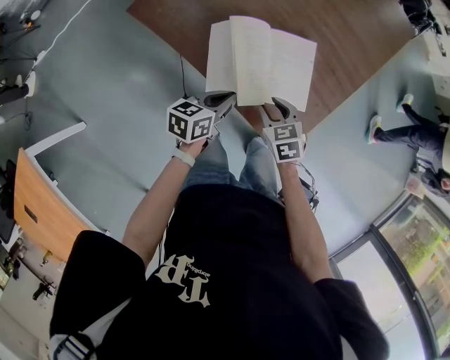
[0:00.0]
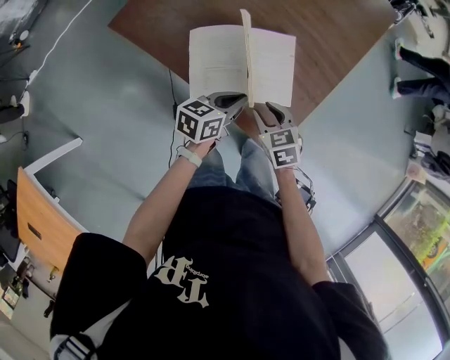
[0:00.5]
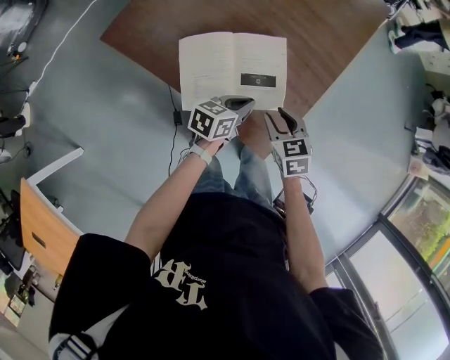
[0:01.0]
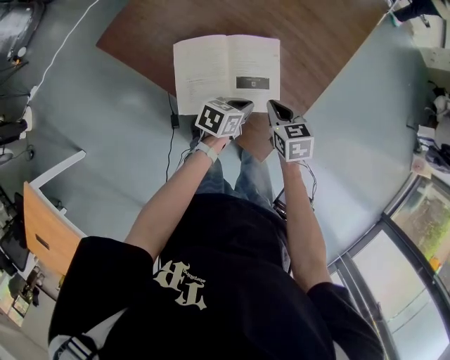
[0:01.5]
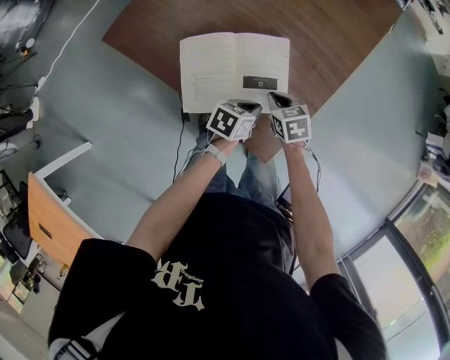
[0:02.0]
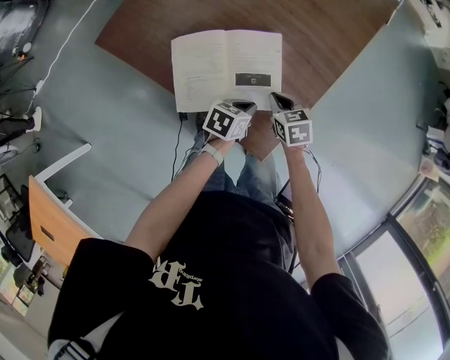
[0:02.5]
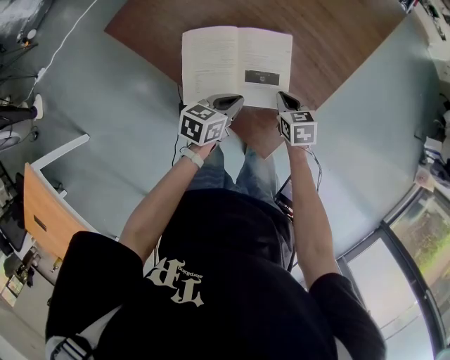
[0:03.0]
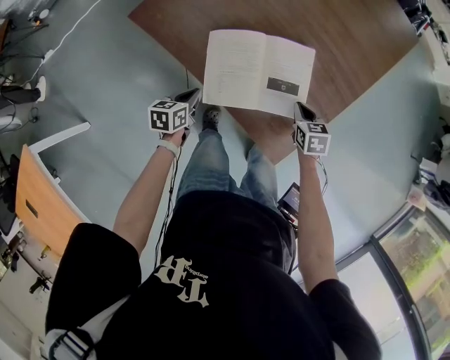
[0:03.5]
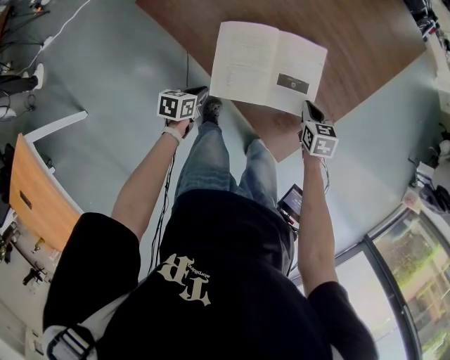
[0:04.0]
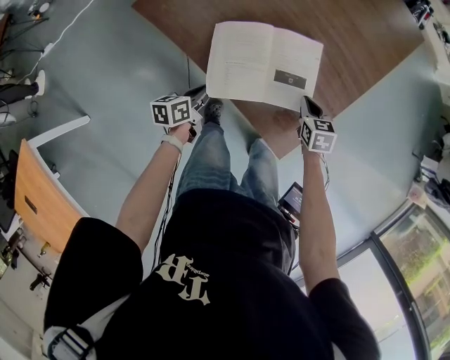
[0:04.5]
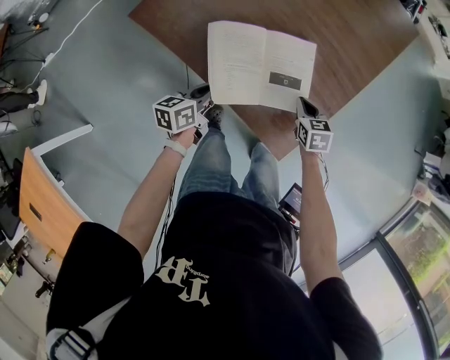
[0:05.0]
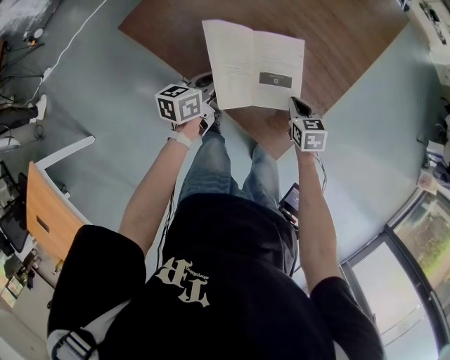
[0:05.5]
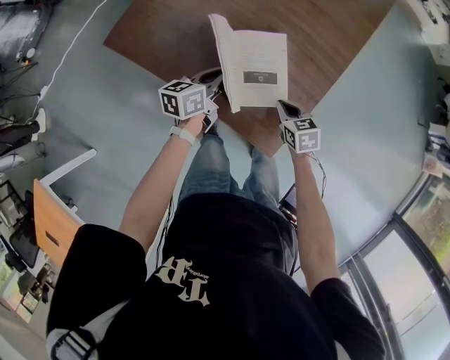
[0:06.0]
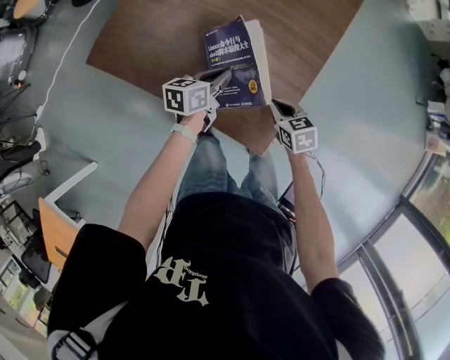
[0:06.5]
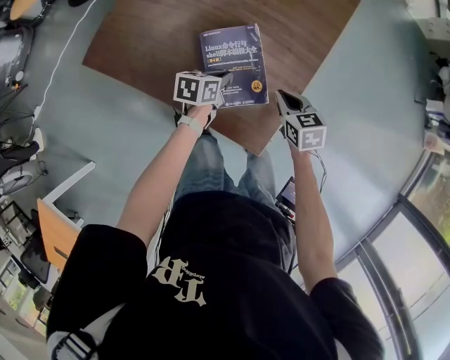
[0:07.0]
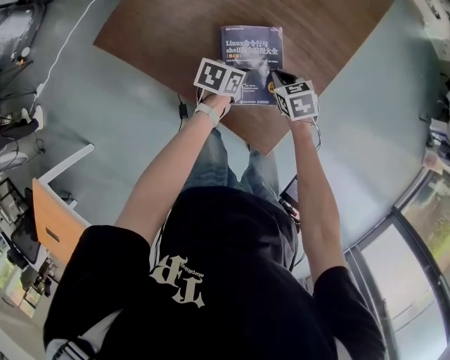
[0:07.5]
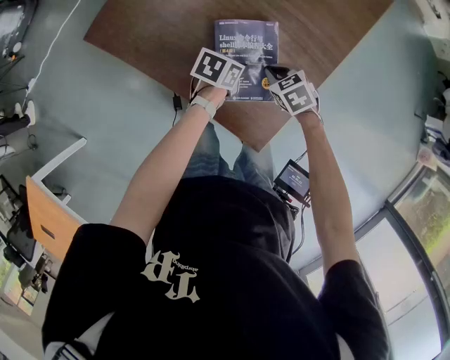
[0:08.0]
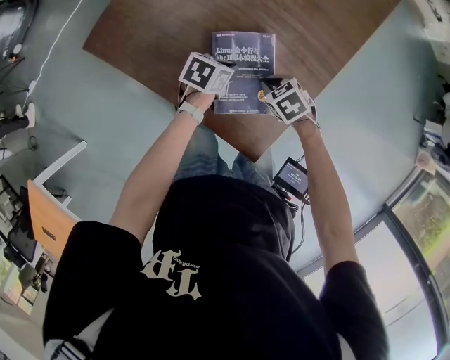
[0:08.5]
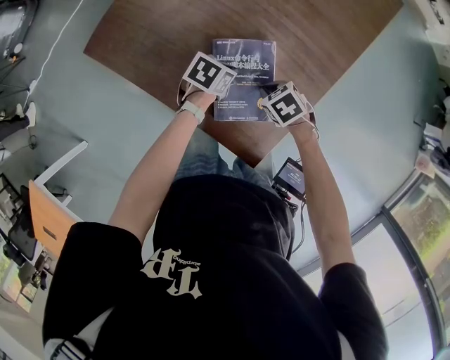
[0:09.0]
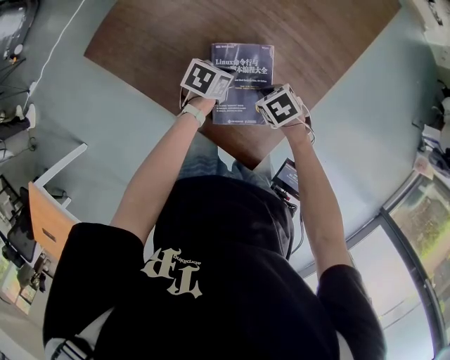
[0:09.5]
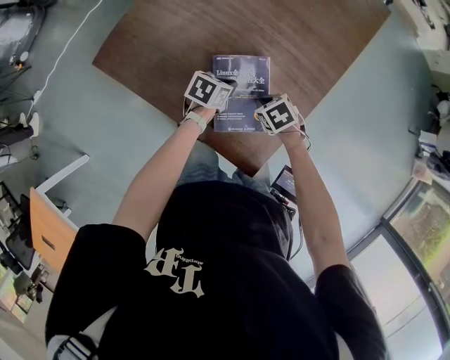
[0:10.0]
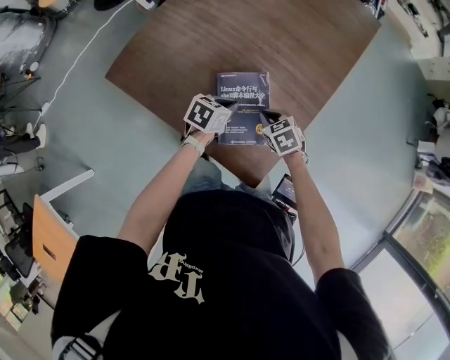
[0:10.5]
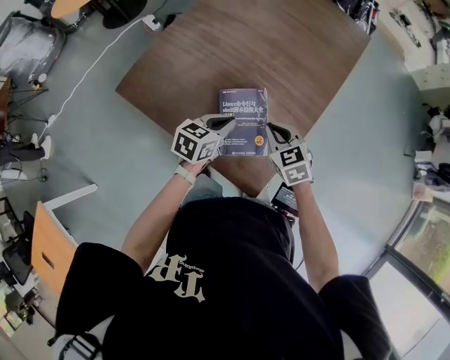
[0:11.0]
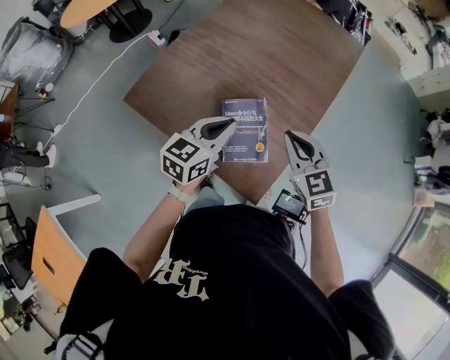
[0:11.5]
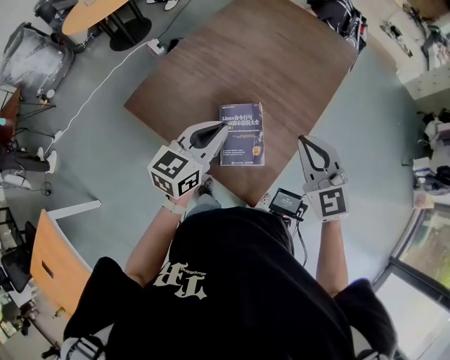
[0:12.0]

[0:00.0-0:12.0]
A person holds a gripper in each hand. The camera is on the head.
0:00.0 to 0:02.0: The right gripper moves forward and to the right, roughly 10 cm, and closes. The left gripper goes some 15 cm to the right, and changes its angle by roughly 20 degrees.
0:02.0 to 0:04.0: The left gripper heads to the left, covering approximately 25 cm, and swivels some 20 degrees.
0:04.0 to 0:06.0: The left gripper moves upward, to the right and forward, approximately 25 cm, and swivels roughly 30 degrees.
0:06.0 to 0:08.0: The left gripper shifts approximately 10 cm to the right and downward, and turns by roughly 30 degrees. Meanwhile the right gripper shifts some 10 cm forward, and swivels about 20 degrees.
0:08.0 to 0:10.0: The left gripper moves approximately 5 cm.
0:10.0 to 0:12.0: The two grippers go some 35 cm upward. The right gripper angles its fingers upward, by some 60 degrees. Meanwhile the left gripper angles its fingers upward, by roughly 40 degrees.

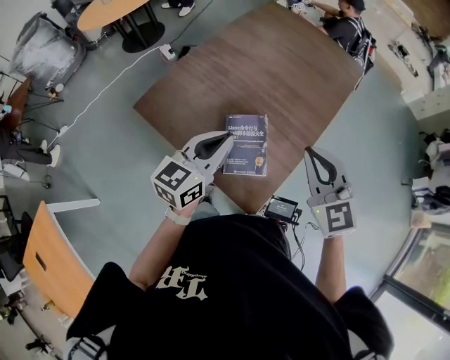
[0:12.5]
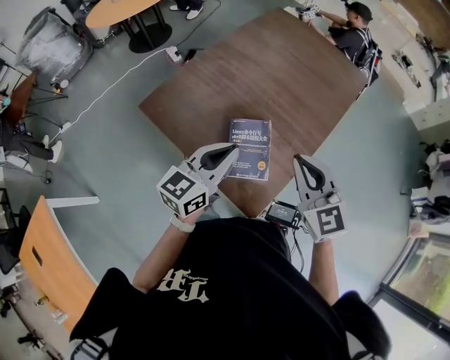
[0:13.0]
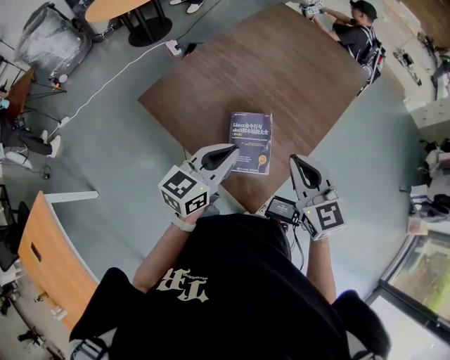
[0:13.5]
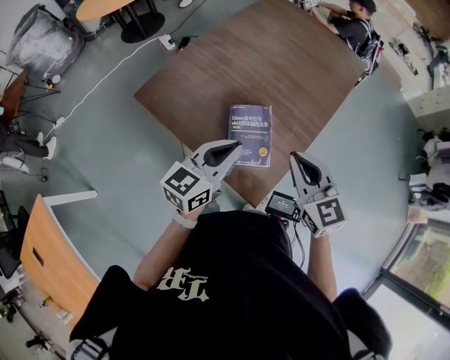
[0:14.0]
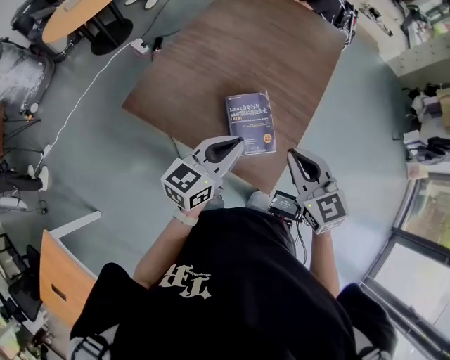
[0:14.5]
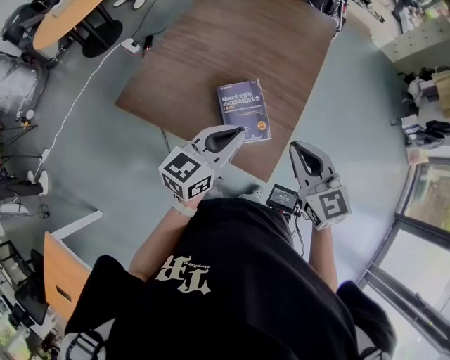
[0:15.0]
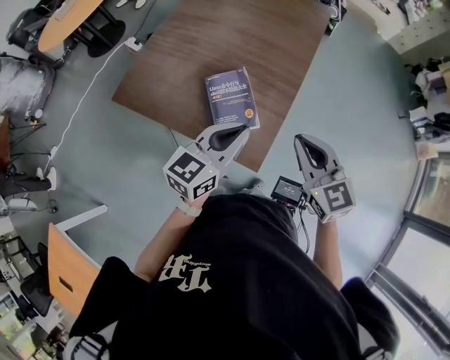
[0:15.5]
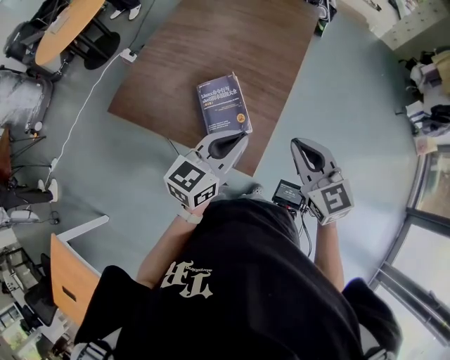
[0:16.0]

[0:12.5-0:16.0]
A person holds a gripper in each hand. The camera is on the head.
0:12.5 to 0:14.5: The left gripper is displaced backward by roughly 5 cm. Meanwhile the right gripper moves to the left, backward and downward, about 10 cm, and swivels approximately 20 degrees.
0:14.5 to 0:16.0: The grippers both shift to the right by roughly 15 cm.

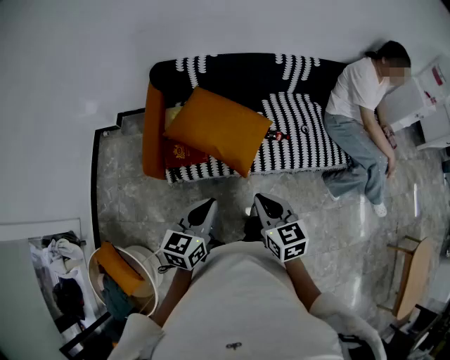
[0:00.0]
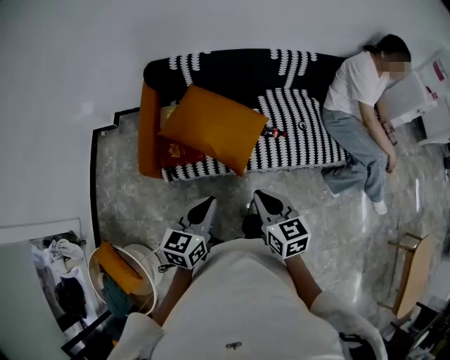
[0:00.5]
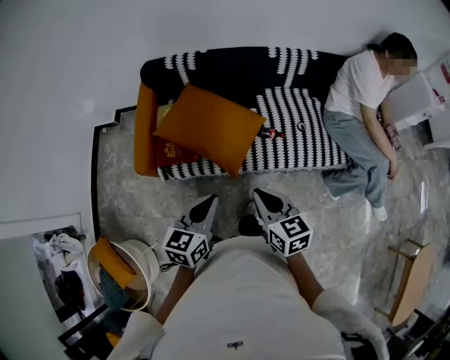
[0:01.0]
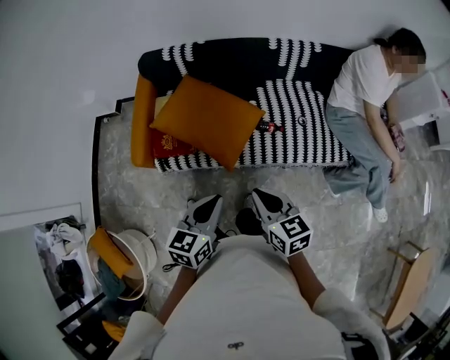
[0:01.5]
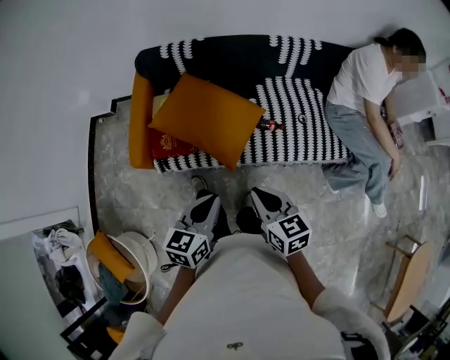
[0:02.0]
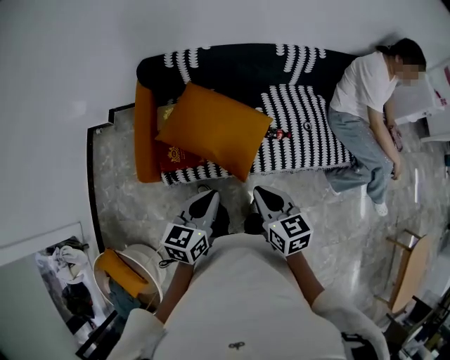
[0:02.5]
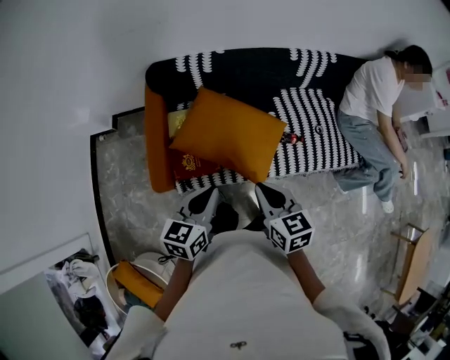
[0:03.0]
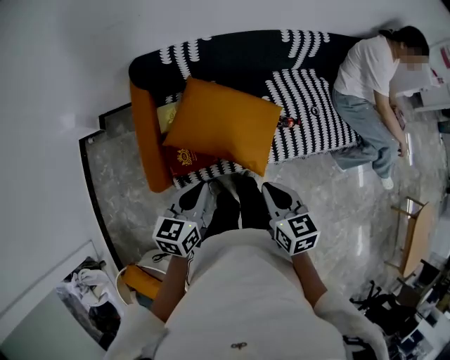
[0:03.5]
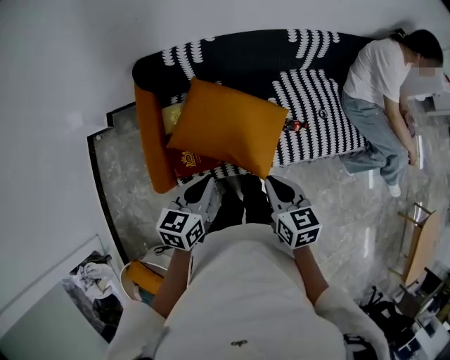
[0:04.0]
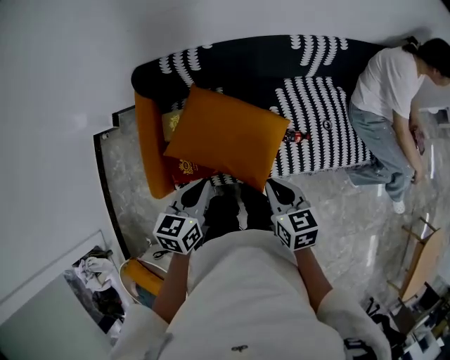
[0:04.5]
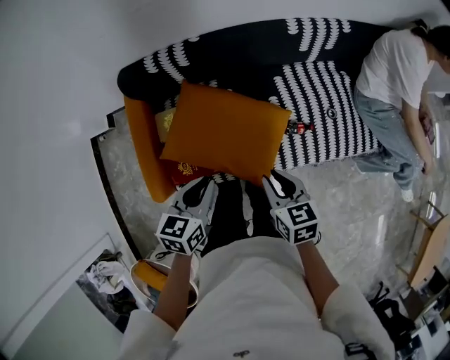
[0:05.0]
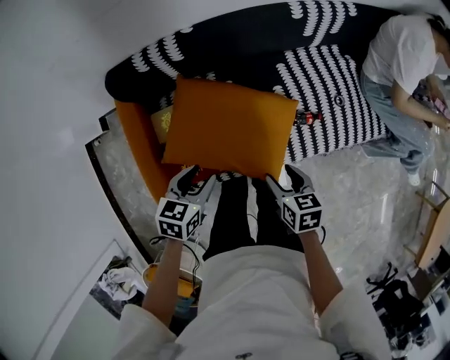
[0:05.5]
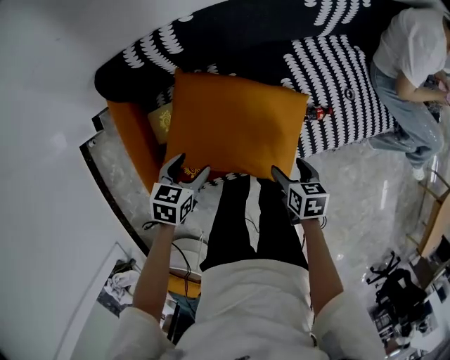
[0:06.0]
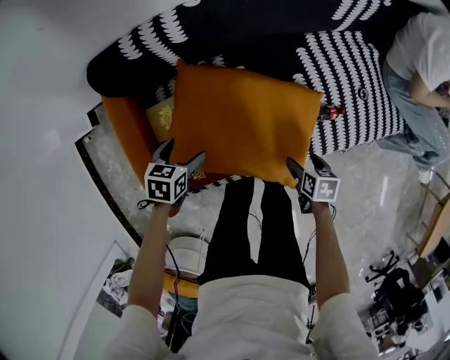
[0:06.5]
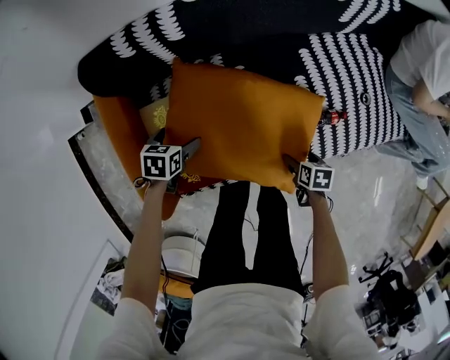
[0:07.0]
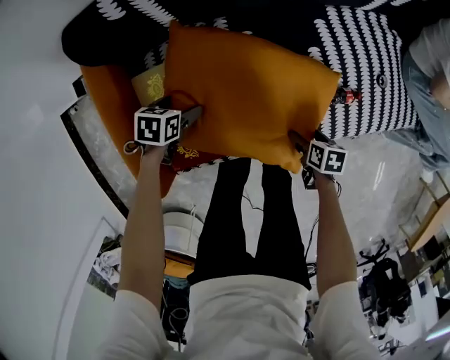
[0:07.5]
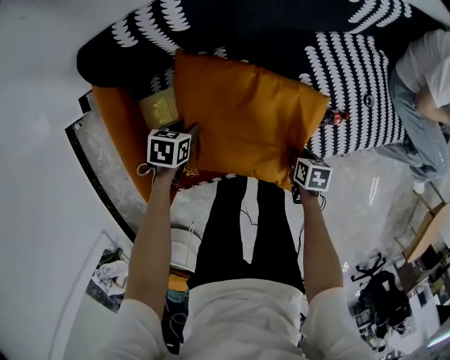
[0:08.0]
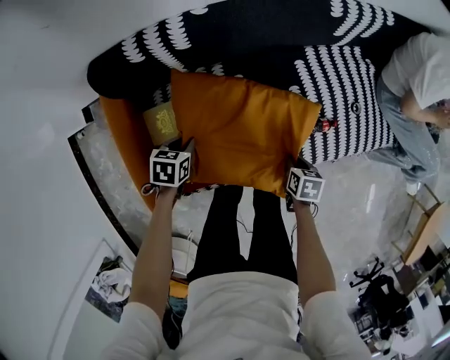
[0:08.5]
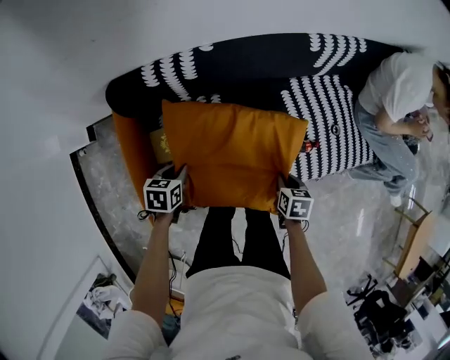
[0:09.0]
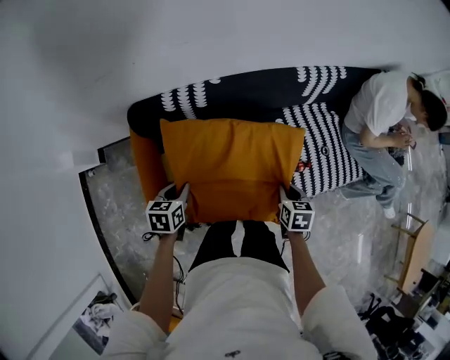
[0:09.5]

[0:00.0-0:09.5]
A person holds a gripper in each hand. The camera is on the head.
0:00.0 to 0:02.0: The right gripper is displaced to the right and forward by roughly 10 cm. The left gripper goes approximately 10 cm to the right.
0:02.0 to 0:04.0: The right gripper heads forward and to the left, covering roughly 20 cm. The left gripper heads to the left and forward, covering about 25 cm.
0:04.0 to 0:05.5: Both grippers move downward and forward, approximately 20 cm. The right gripper opens up, while the left gripper swivels about 20 degrees, and opens its fingers.
0:05.5 to 0:07.5: The left gripper heads downward and to the left, covering approximately 30 cm, changes its angle by roughly 20 degrees, and opens. Meanwhile the right gripper moves downward, some 30 cm, swivels approximately 30 degrees, and opens up.
0:07.5 to 0:09.5: Both grippers travel together upward, some 30 cm. The right gripper turns by approximately 30 degrees, and closes up, while the left gripper changes its angle by some 20 degrees, and closes.

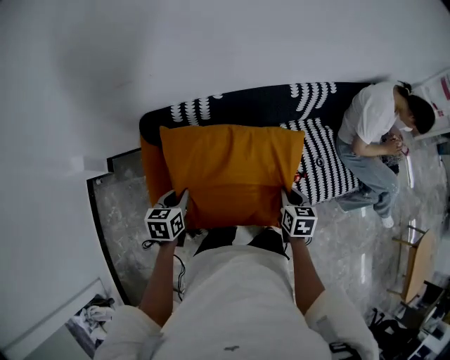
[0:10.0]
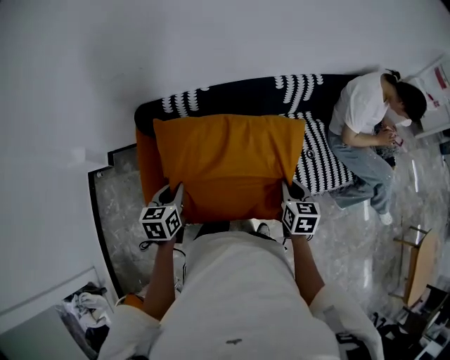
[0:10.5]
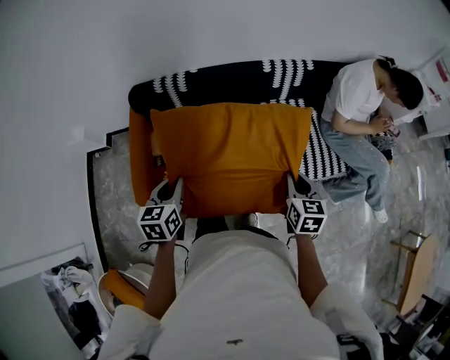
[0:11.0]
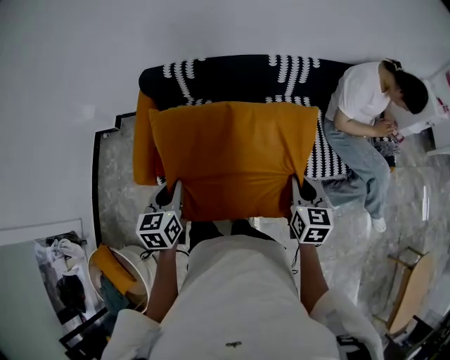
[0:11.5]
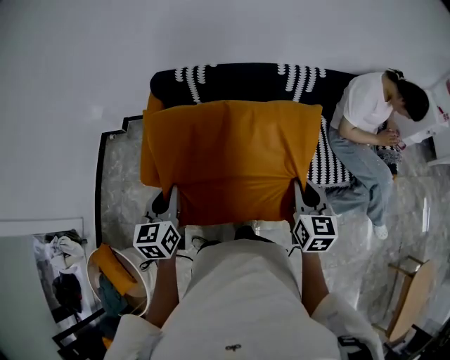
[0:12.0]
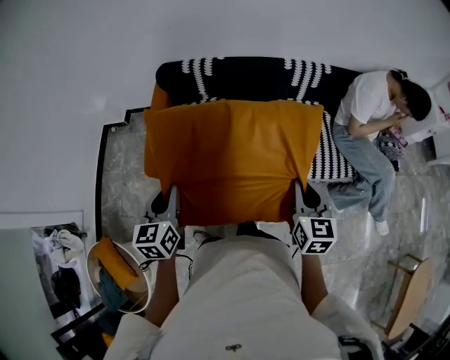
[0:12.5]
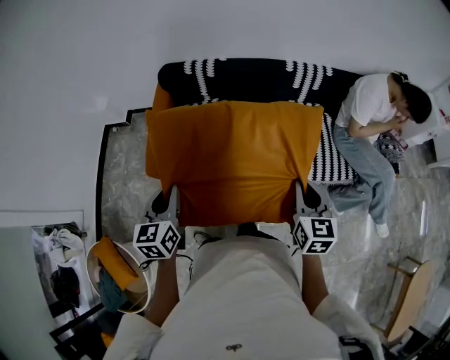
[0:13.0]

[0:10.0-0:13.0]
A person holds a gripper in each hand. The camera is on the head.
0:10.0 to 0:11.5: The left gripper travels backward, to the right and upward by roughly 35 cm, and turns by about 20 degrees; the right gripper goes roughly 30 cm to the right, backward and upward, and turns by approximately 20 degrees.
0:11.5 to 0:13.0: Both grippers move to the left and backward, approximately 10 cm.
